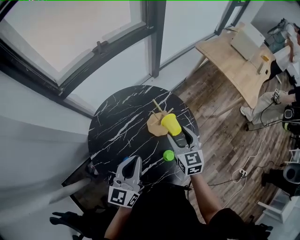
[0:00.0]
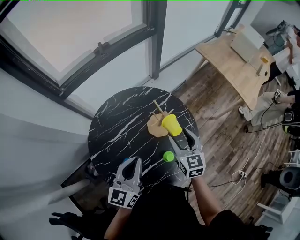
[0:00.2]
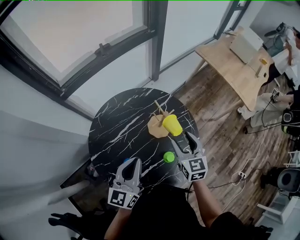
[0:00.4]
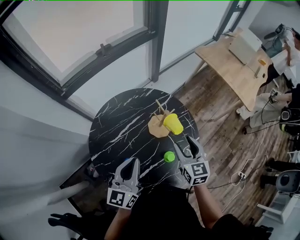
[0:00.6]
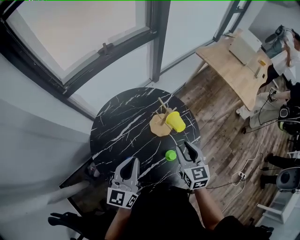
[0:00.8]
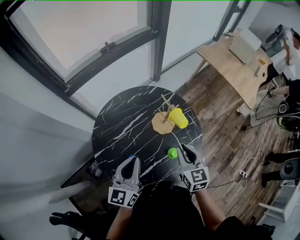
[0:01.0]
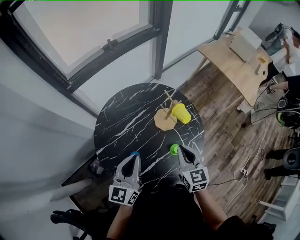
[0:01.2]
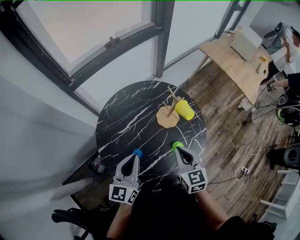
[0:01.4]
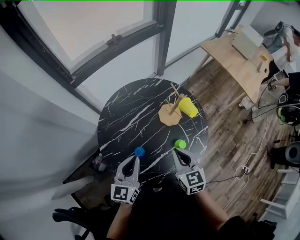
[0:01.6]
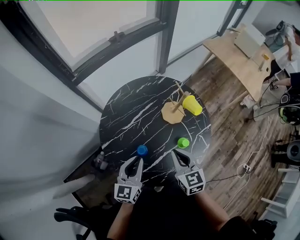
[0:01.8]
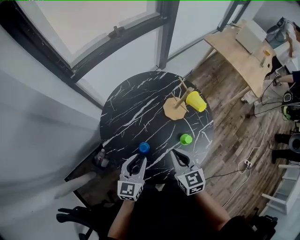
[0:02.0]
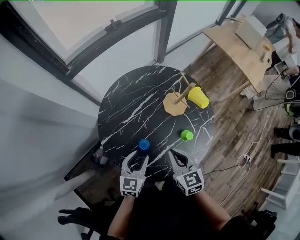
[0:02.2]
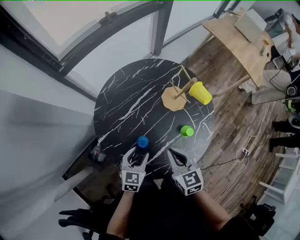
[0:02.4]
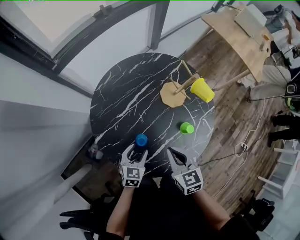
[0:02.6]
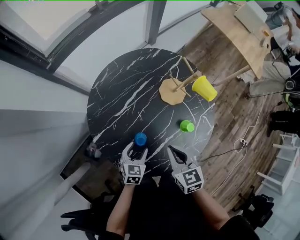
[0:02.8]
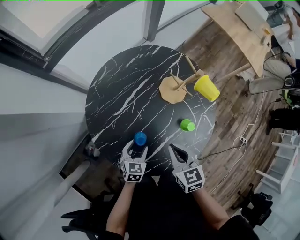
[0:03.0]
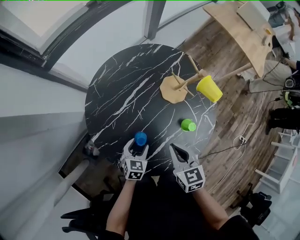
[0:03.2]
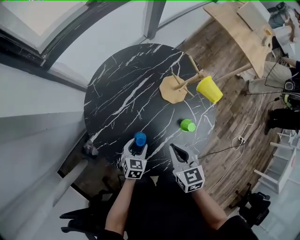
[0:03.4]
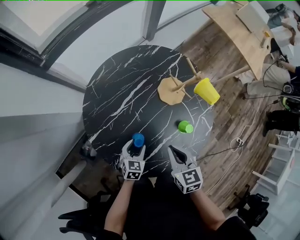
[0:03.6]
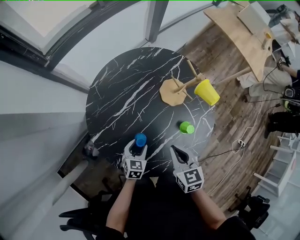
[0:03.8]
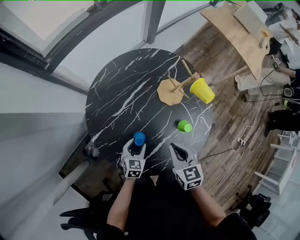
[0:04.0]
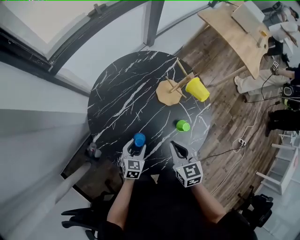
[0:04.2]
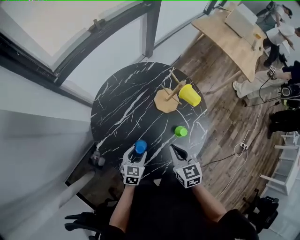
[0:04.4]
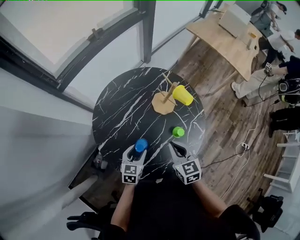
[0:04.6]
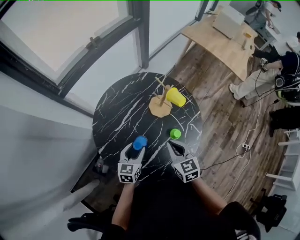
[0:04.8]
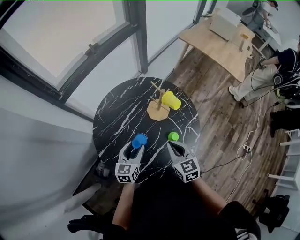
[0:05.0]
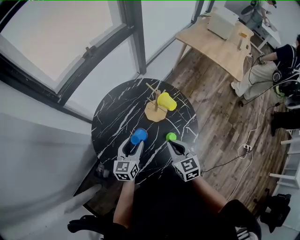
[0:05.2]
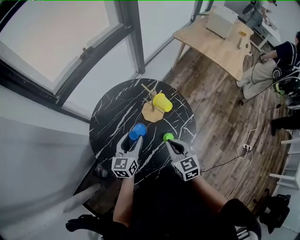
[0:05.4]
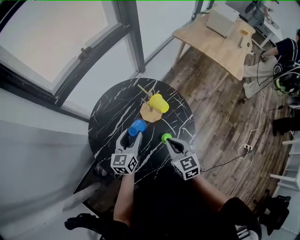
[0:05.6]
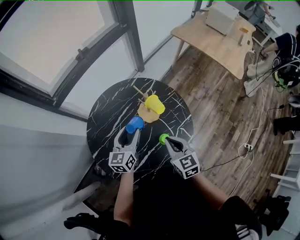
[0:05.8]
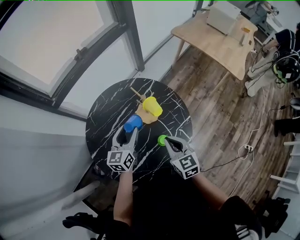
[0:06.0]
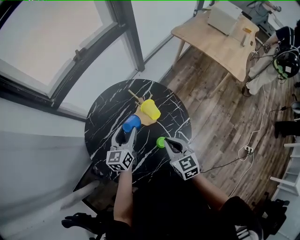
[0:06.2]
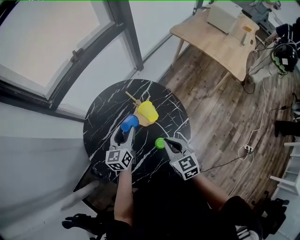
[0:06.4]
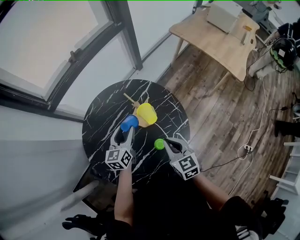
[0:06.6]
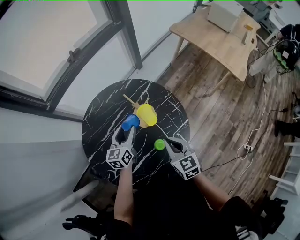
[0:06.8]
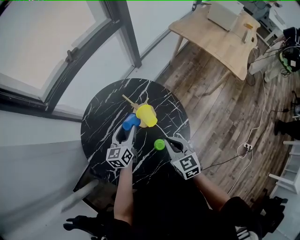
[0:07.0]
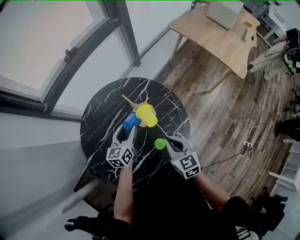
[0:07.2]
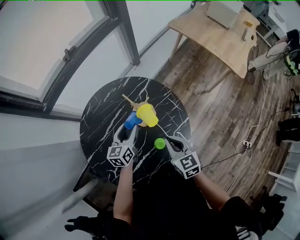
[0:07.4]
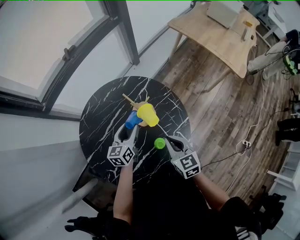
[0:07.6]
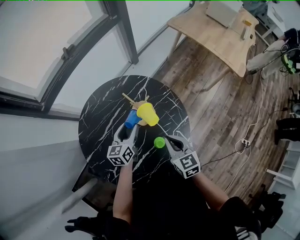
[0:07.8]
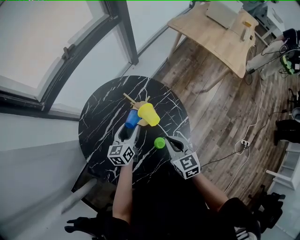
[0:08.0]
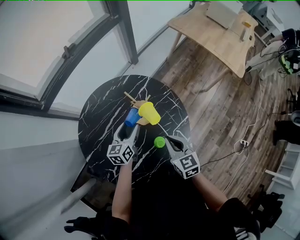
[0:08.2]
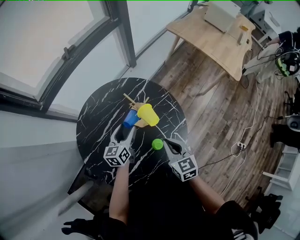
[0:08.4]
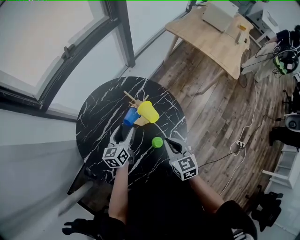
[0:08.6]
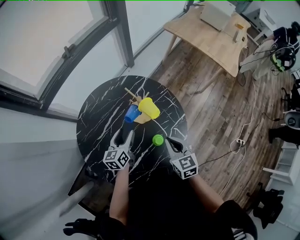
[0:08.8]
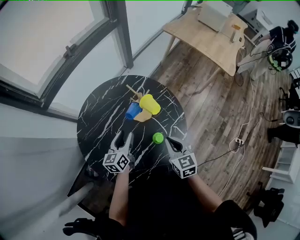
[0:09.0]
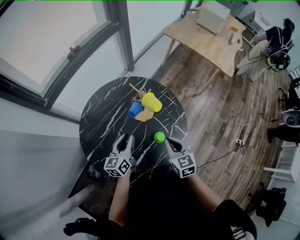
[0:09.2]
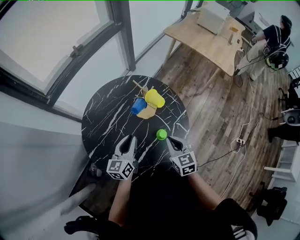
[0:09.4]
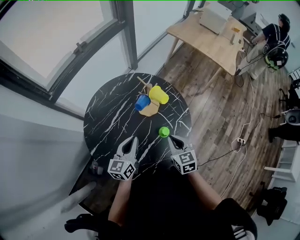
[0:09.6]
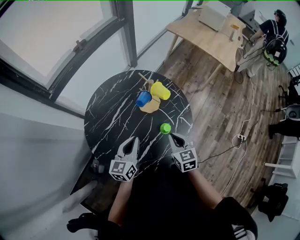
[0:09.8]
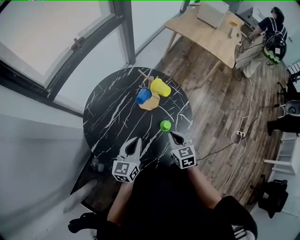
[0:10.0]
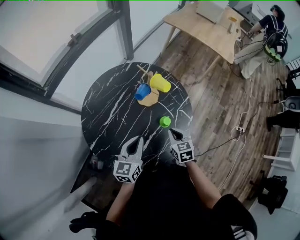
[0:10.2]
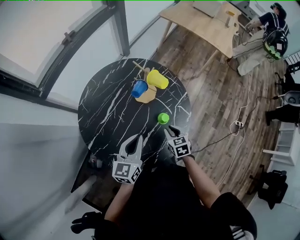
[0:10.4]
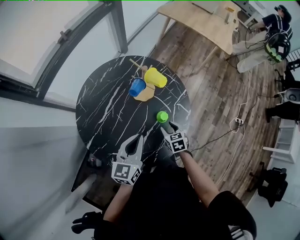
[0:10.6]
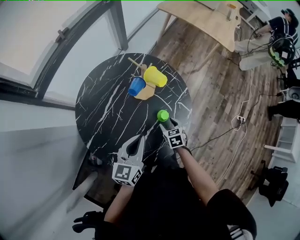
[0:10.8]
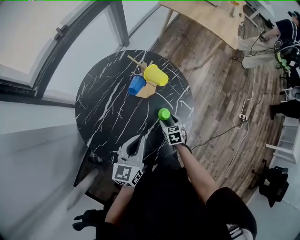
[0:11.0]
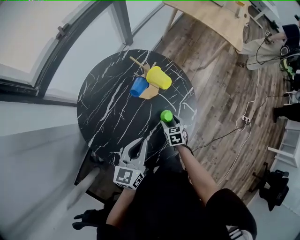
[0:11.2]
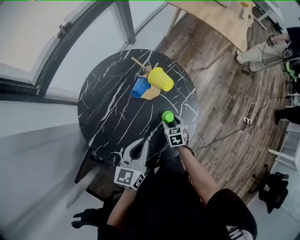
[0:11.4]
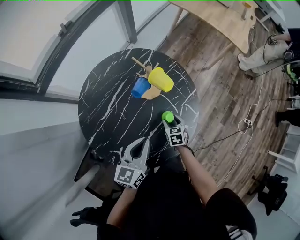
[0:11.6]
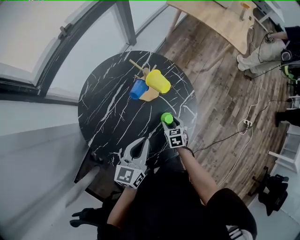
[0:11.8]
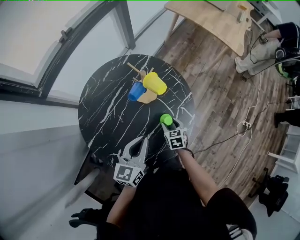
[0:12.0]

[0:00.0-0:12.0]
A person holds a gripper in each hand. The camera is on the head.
0:00.0 to 0:01.6: The left gripper travels to the left, backward and downward by approximately 15 cm; the right gripper heads backward and to the left, covering some 20 cm, and closes its fingers.
0:01.6 to 0:03.0: The left gripper moves downward, some 30 cm, tips its fingers downward by approximately 40 degrees, and opens its fingers, while the right gripper shifts approximately 10 cm downward and to the left.
0:03.0 to 0:04.4: The left gripper shifts some 5 cm upward.
0:04.4 to 0:06.0: The left gripper moves upward, forward and to the right, roughly 30 cm, and changes its angle by about 30 degrees. Meanwhile the right gripper is displaced to the right, upward and forward by roughly 15 cm.
0:06.0 to 0:07.6: The right gripper moves roughly 5 cm. The left gripper goes some 10 cm downward and forward.
0:07.6 to 0:09.0: The two grippers go approximately 5 cm backward.
0:09.0 to 0:10.4: The left gripper moves backward and upward, roughly 15 cm, and closes; the right gripper goes some 15 cm downward and backward.
0:10.4 to 0:12.0: The left gripper ends up roughly 5 cm from where it was, while the right gripper is displaced downward and forward by roughly 10 cm, and opens up.

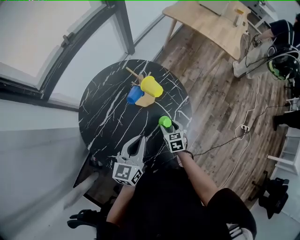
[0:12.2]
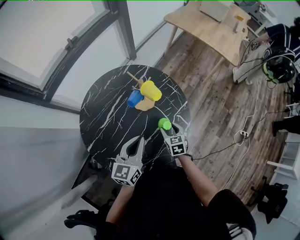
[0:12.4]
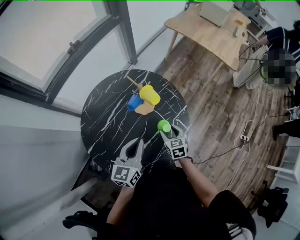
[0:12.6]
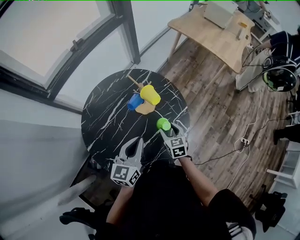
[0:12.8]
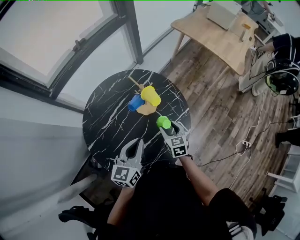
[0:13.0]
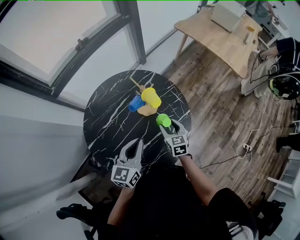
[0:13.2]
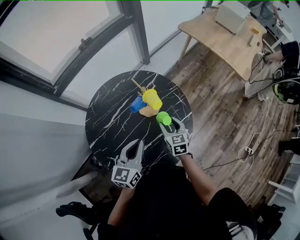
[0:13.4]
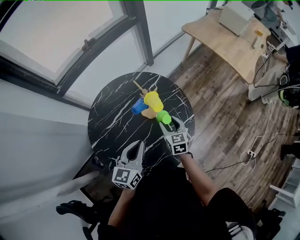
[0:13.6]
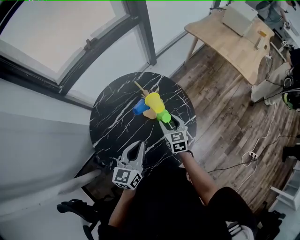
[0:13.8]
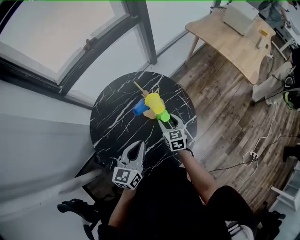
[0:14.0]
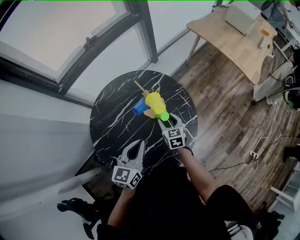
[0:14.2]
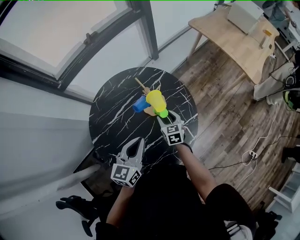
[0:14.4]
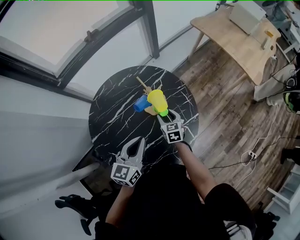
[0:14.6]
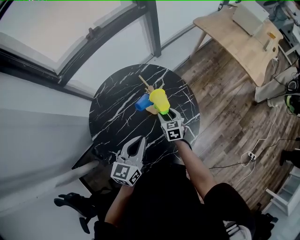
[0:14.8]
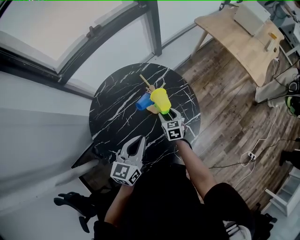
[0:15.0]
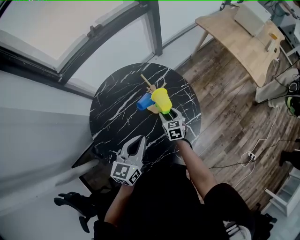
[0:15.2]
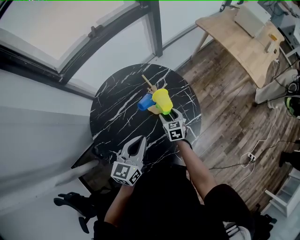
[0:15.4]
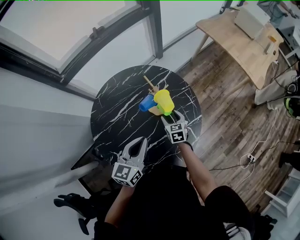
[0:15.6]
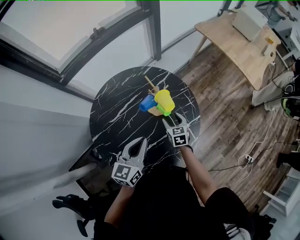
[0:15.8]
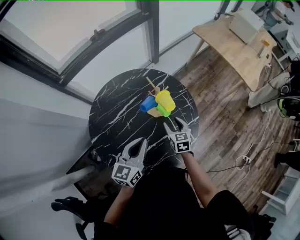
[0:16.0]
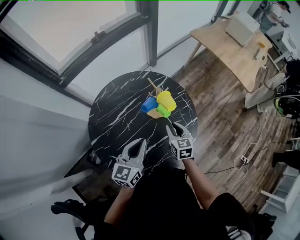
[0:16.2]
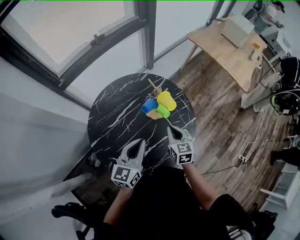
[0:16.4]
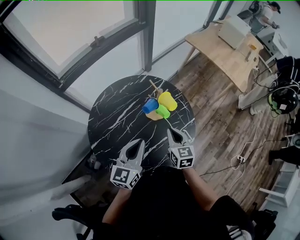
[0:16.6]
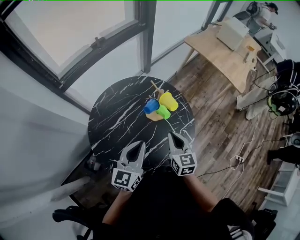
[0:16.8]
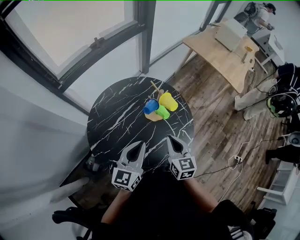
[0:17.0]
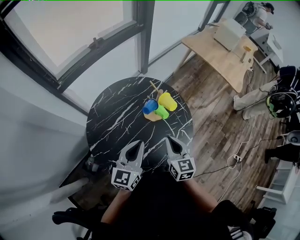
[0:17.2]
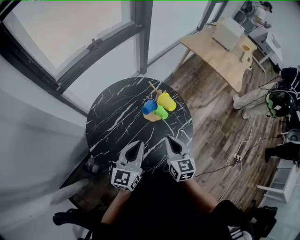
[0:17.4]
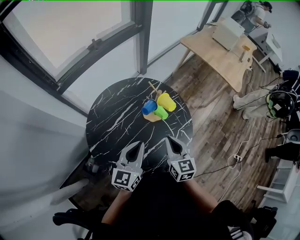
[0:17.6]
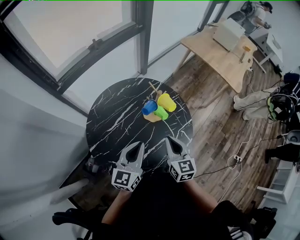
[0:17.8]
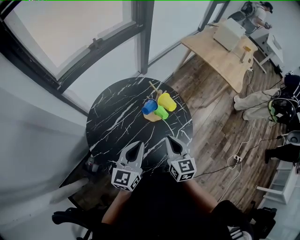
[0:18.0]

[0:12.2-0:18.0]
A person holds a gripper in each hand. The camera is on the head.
0:12.2 to 0:13.6: The right gripper shifts roughly 15 cm upward and forward, and swivels approximately 20 degrees.
0:13.6 to 0:15.0: The right gripper goes about 10 cm downward.
0:15.0 to 0:16.6: The right gripper is displaced upward and backward by about 20 cm, and closes its fingers, while the left gripper moves to the left, roughly 5 cm.
0:16.6 to 0:18.0: The right gripper moves upward, some 5 cm.

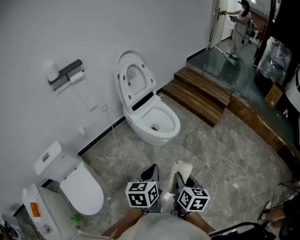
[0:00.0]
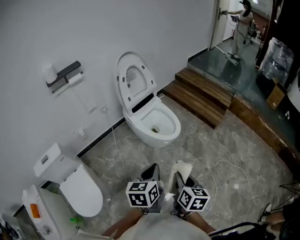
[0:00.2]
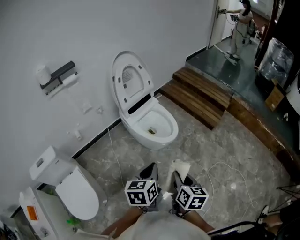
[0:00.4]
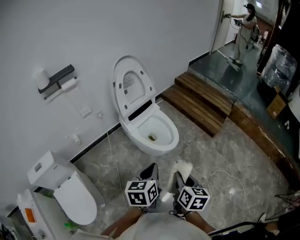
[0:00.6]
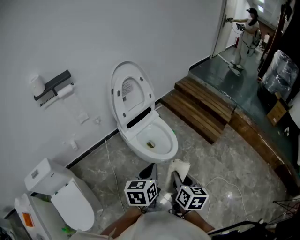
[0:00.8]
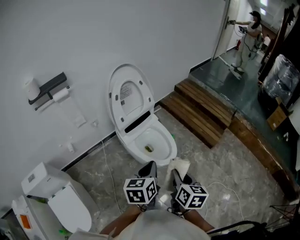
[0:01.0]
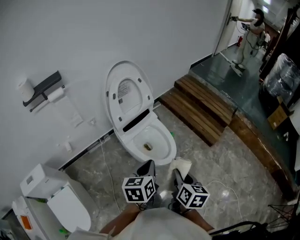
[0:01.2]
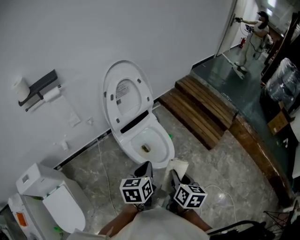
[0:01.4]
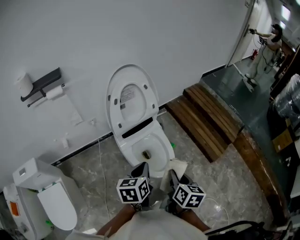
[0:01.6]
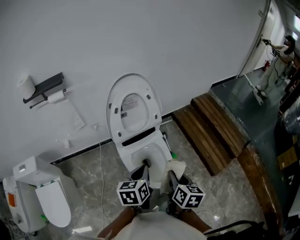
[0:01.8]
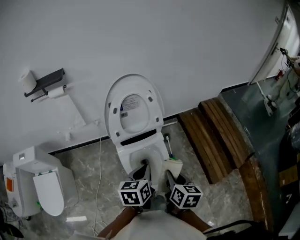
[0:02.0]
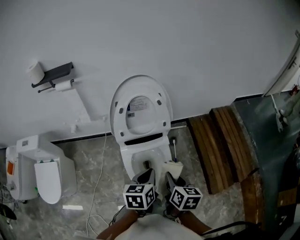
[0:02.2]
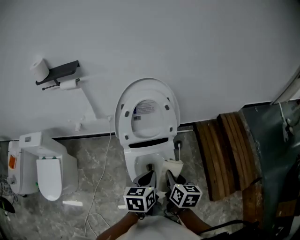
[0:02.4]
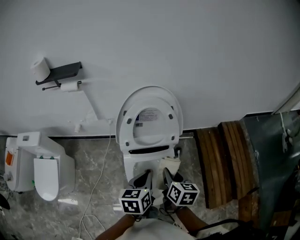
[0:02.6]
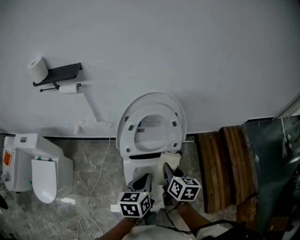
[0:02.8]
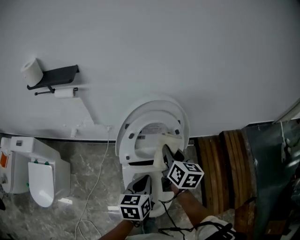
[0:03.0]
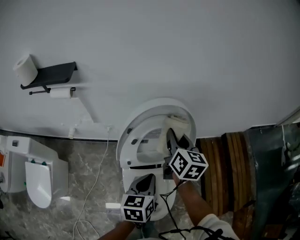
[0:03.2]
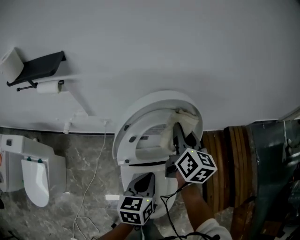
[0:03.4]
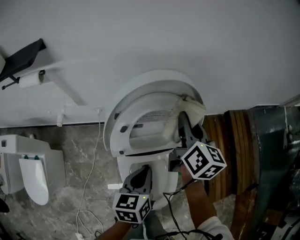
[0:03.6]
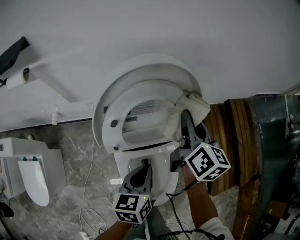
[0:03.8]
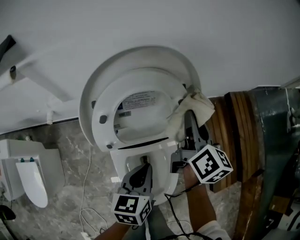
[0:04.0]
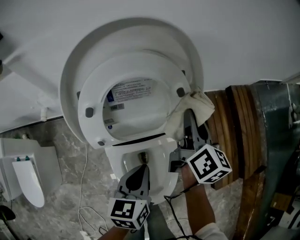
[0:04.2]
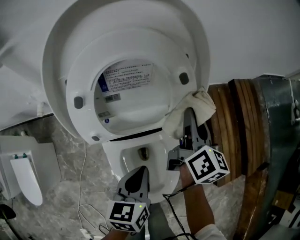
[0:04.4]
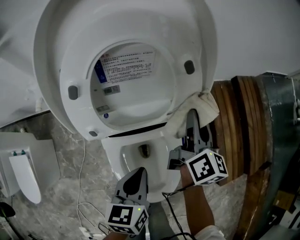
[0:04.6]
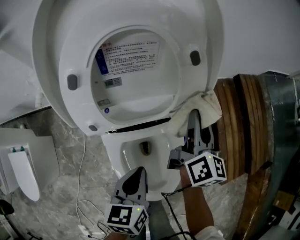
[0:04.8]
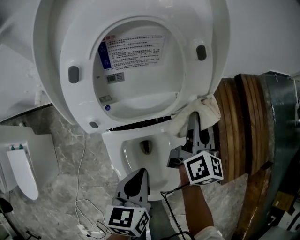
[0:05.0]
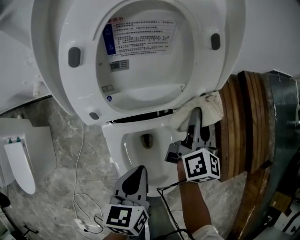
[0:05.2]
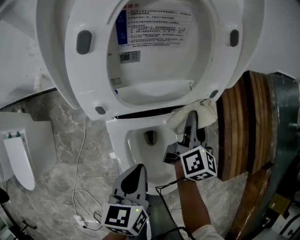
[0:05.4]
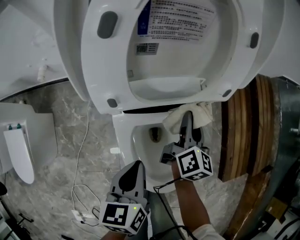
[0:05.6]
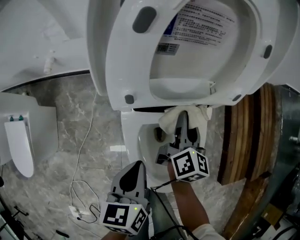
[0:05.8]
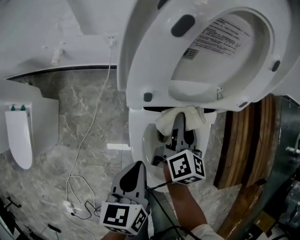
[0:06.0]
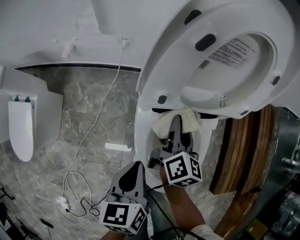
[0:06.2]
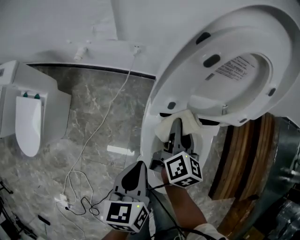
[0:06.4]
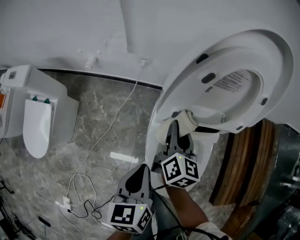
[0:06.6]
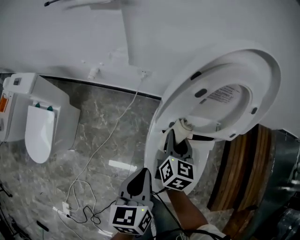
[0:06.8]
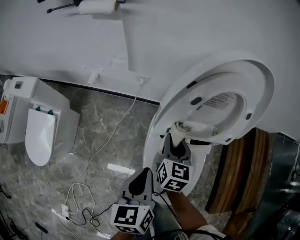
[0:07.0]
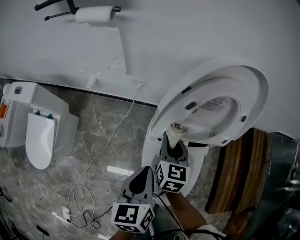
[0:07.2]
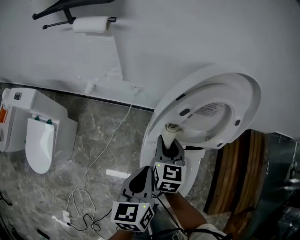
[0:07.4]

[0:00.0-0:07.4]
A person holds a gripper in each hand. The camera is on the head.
0:00.0 to 0:01.4: Both grippers travel together forward, roughly 35 cm.
0:01.4 to 0:03.0: The right gripper ends up approximately 50 cm from where it was, and swivels approximately 40 degrees; the left gripper moves some 30 cm, and rotates roughly 30 degrees.
0:03.0 to 0:04.4: The left gripper travels downward by some 20 cm. The right gripper moves downward and to the right, about 20 cm, and swivels roughly 30 degrees.
0:04.4 to 0:06.0: The left gripper is displaced to the left, backward and downward by roughly 15 cm. Meanwhile the right gripper heads to the left, downward and backward, covering approximately 25 cm.
0:06.0 to 0:07.4: The right gripper goes roughly 20 cm upward and to the left, and rotates some 40 degrees. The left gripper shifts roughly 15 cm upward.
